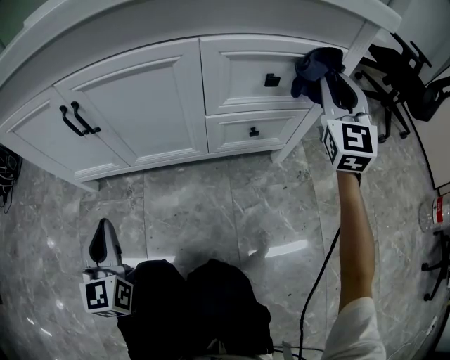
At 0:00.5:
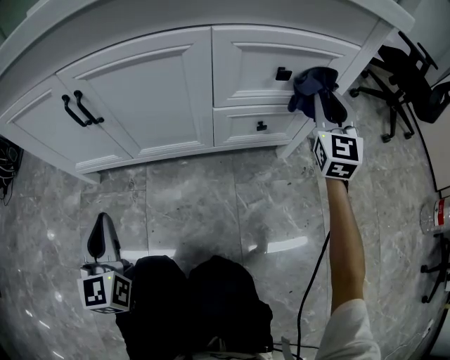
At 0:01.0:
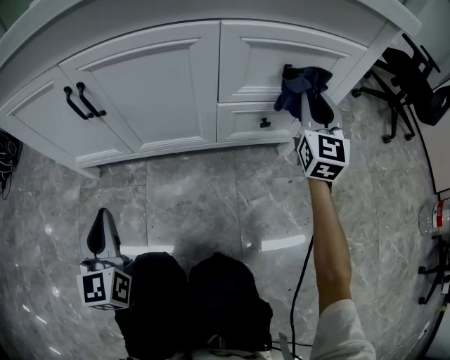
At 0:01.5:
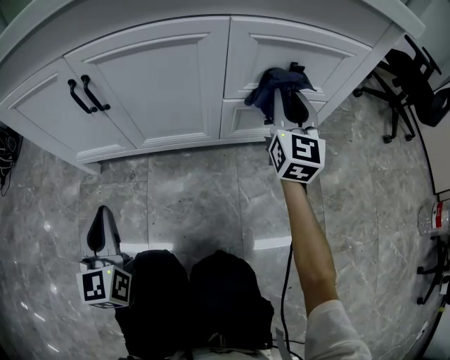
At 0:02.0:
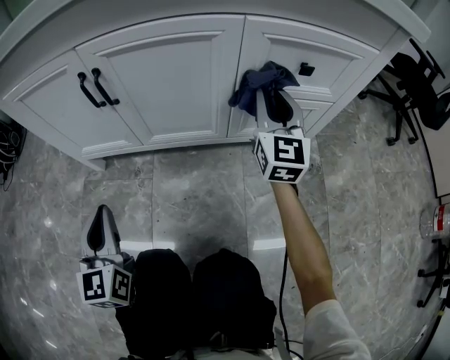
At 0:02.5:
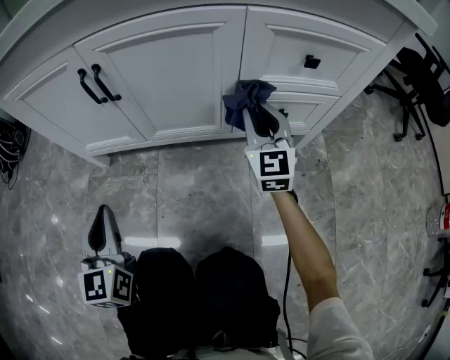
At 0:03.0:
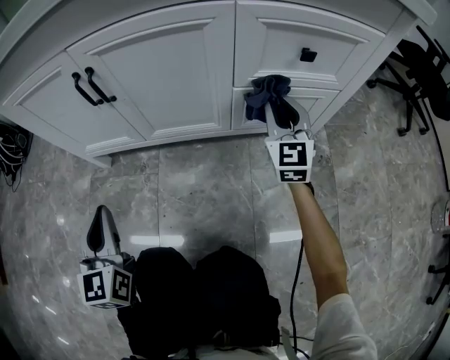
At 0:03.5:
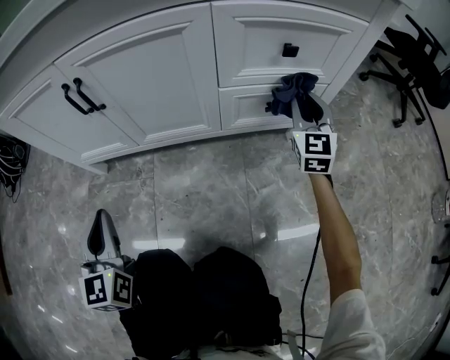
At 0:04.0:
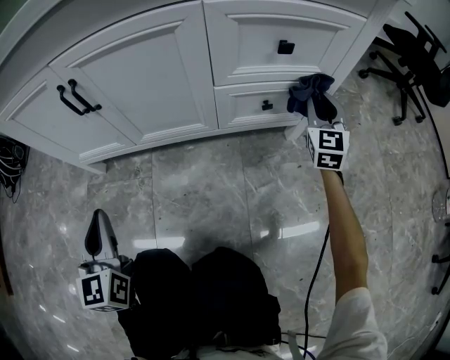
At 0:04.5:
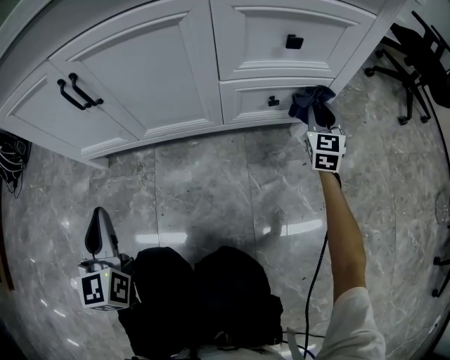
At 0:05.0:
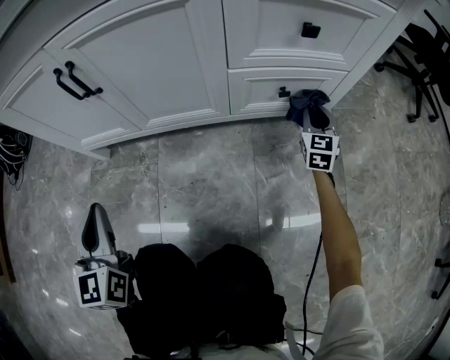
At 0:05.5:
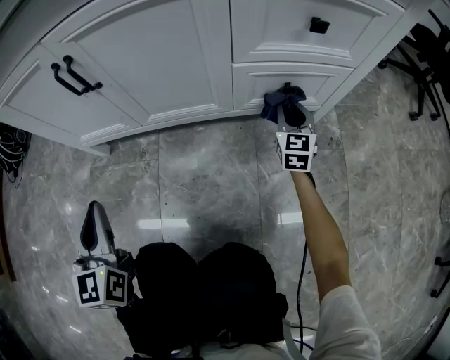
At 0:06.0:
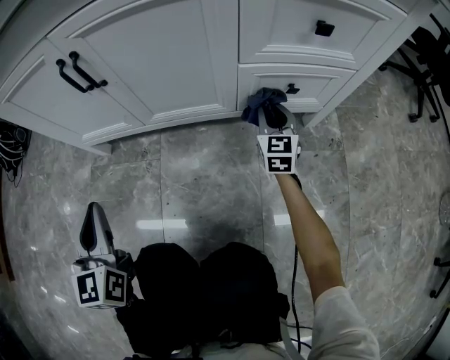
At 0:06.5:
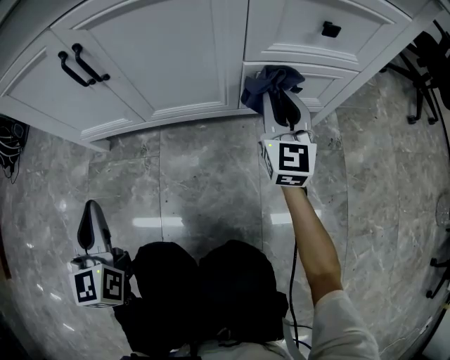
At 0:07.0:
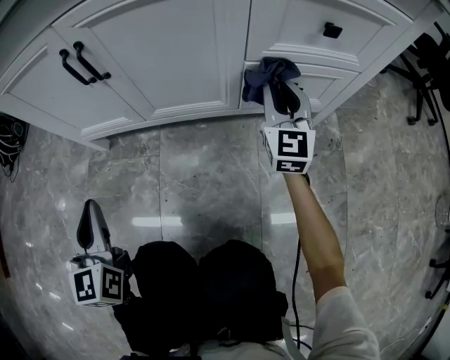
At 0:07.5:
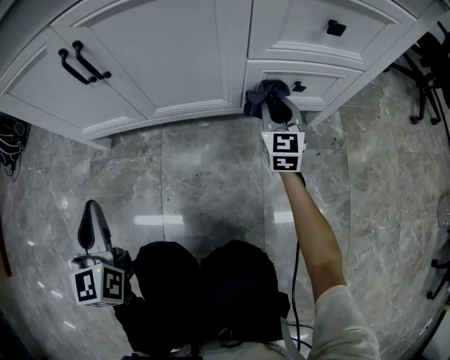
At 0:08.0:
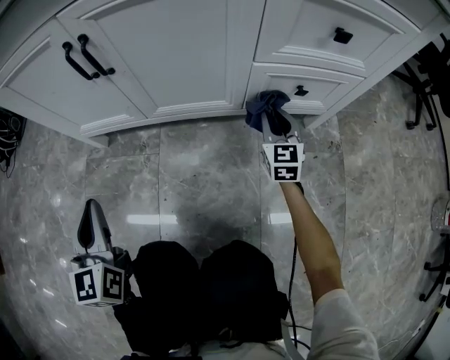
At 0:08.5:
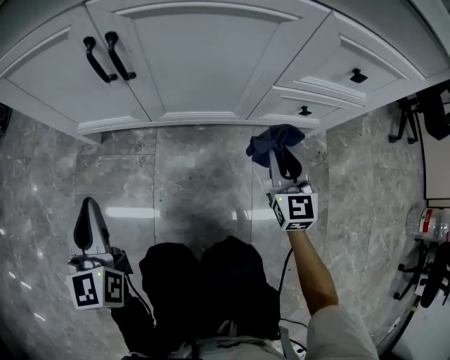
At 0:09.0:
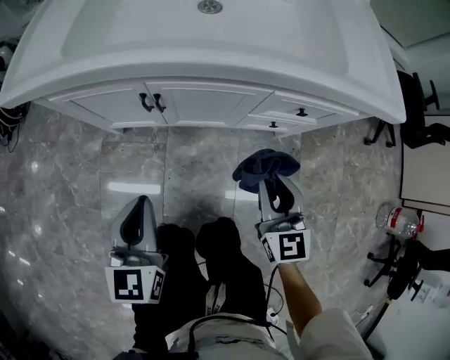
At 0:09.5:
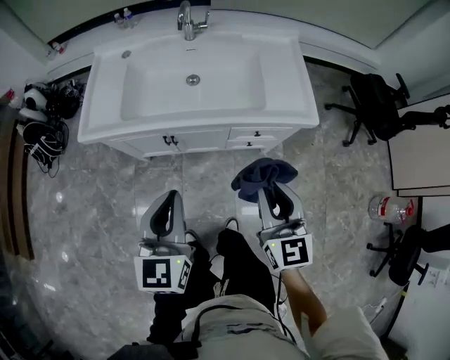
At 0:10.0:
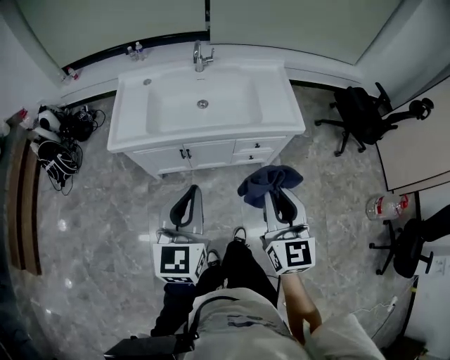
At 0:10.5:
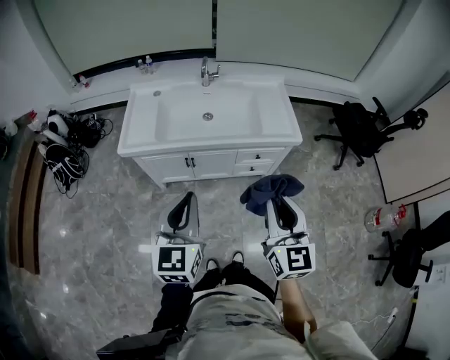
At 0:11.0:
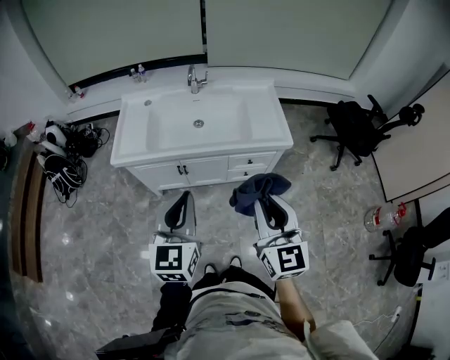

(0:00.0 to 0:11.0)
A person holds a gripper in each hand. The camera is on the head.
0:00.0 - 0:02.0: The right gripper heads to the left and downward, covering roughly 20 cm, and rotates about 20 degrees.
0:02.0 - 0:03.5: The right gripper goes about 15 cm to the right and downward.
0:03.5 - 0:05.5: The right gripper travels downward by some 15 cm.
0:05.5 - 0:07.5: The right gripper heads to the left, covering approximately 5 cm, and reaches approximately 15 cm upward, then returns.
0:07.5 - 0:09.0: The left gripper goes about 25 cm upward. Meanwhile the right gripper goes approximately 40 cm upward and backward.
0:09.0 - 0:11.0: Both grippers travel together upward, roughly 50 cm.

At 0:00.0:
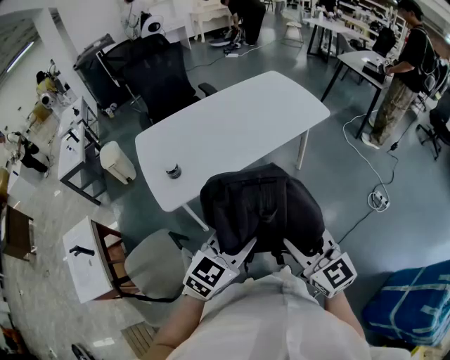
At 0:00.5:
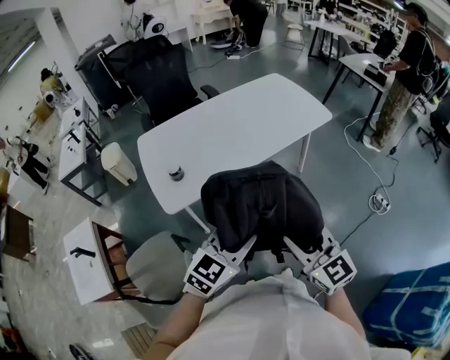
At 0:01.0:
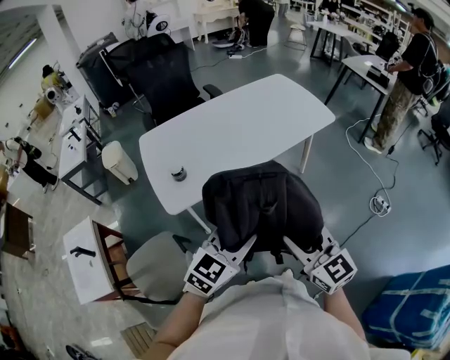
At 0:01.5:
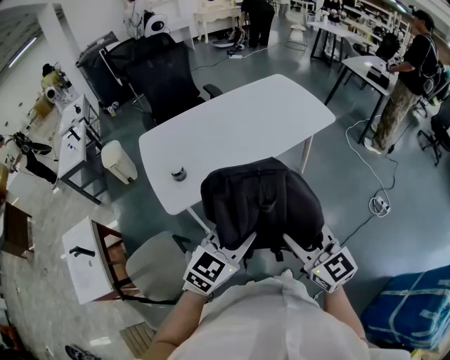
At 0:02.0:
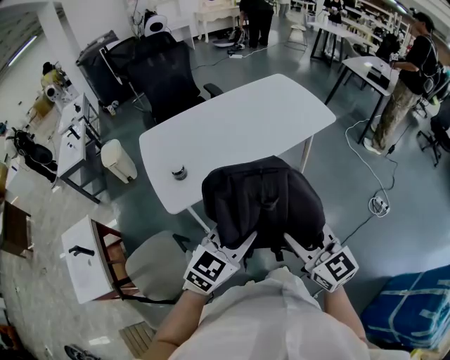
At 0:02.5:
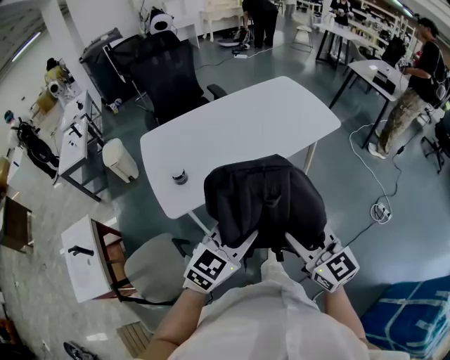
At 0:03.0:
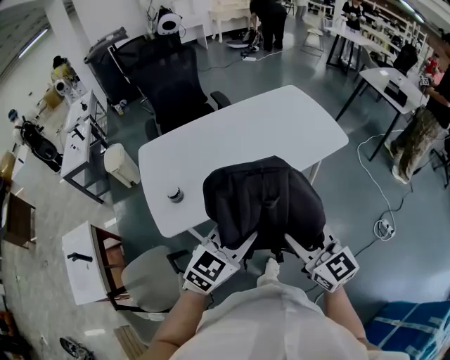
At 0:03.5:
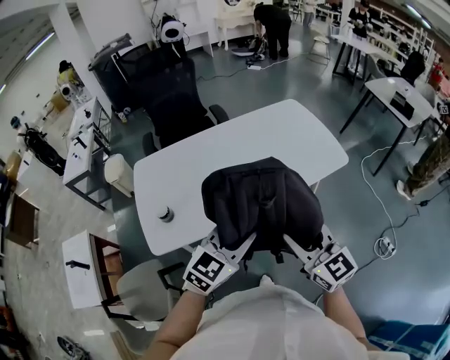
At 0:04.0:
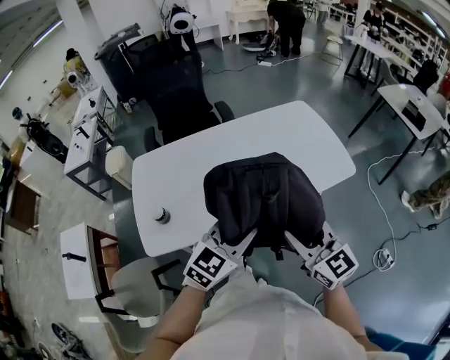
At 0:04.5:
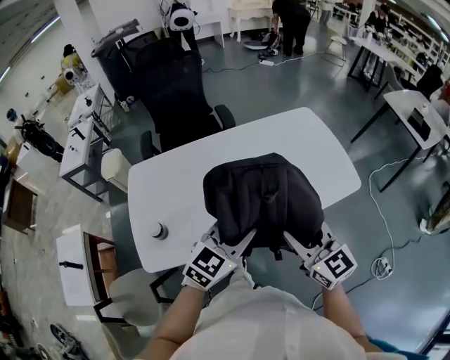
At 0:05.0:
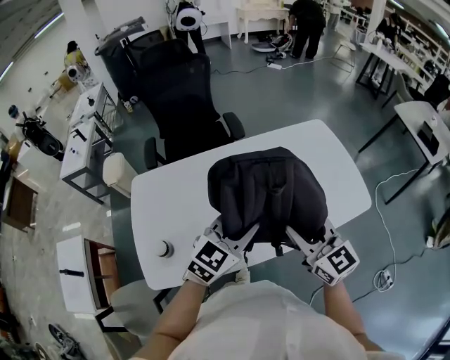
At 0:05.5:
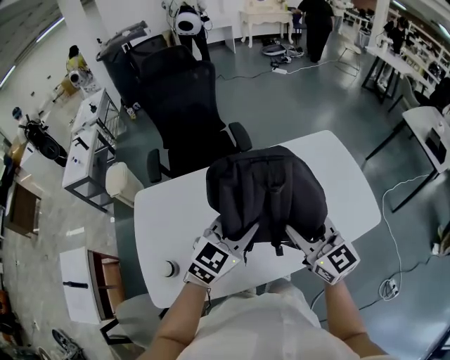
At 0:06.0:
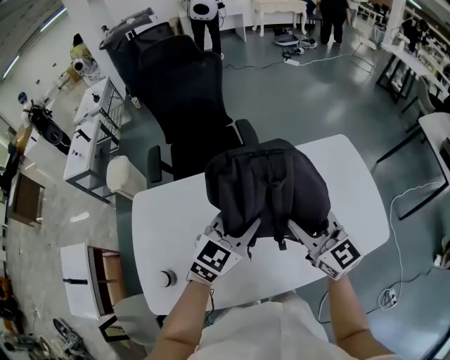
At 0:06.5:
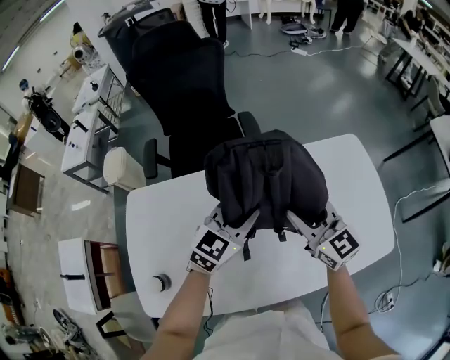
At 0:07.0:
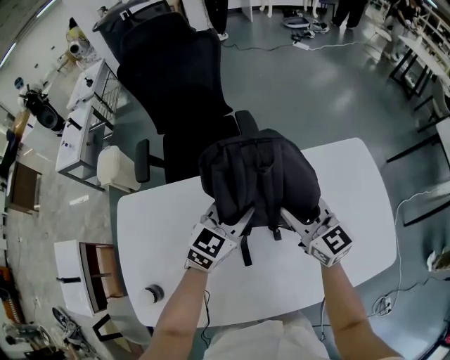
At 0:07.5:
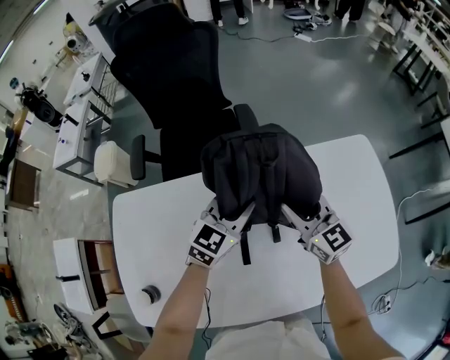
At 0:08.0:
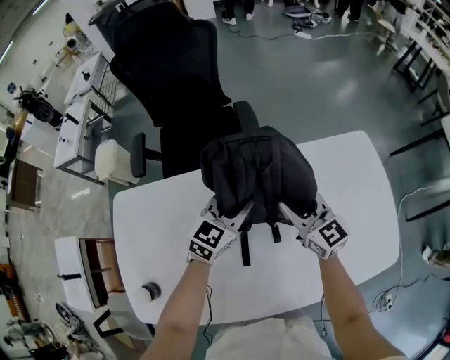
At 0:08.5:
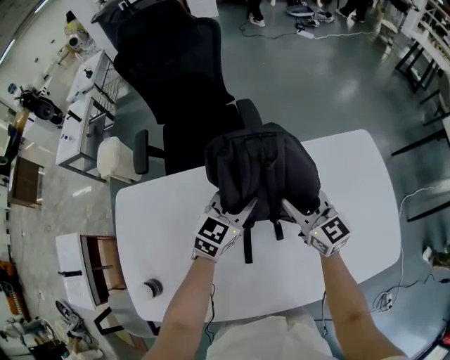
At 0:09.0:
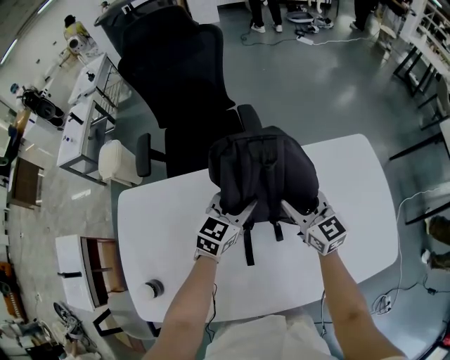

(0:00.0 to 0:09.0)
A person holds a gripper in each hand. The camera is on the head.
0:00.0 - 0:02.0: The grippers make only small movements.
0:02.0 - 0:04.5: Both grippers travel together forward, roughly 35 cm.
0:04.5 - 0:07.0: The two grippers go about 40 cm forward.
0:07.0 - 0:09.0: The grippers both shift downward by some 5 cm. The left gripper opens up.

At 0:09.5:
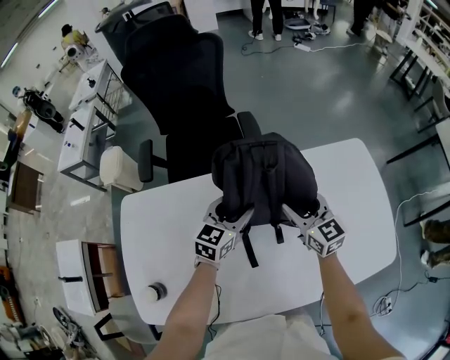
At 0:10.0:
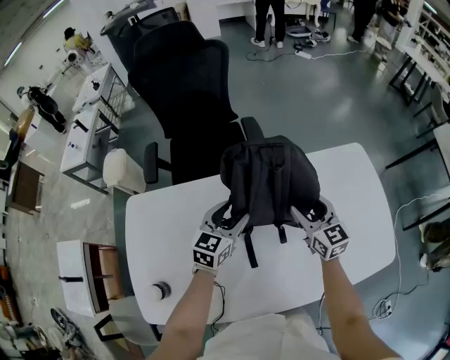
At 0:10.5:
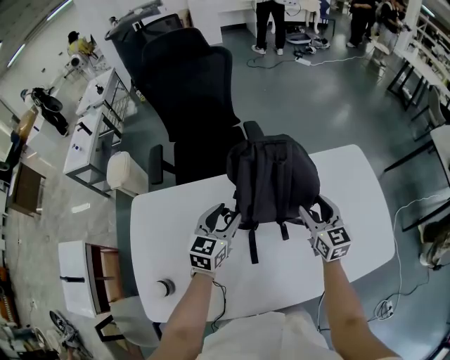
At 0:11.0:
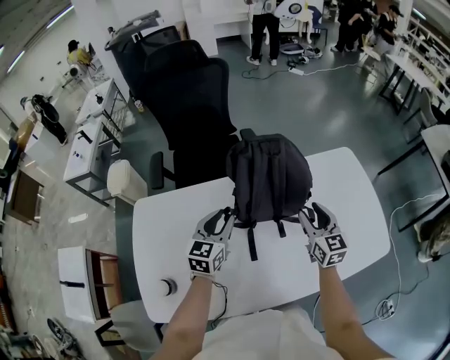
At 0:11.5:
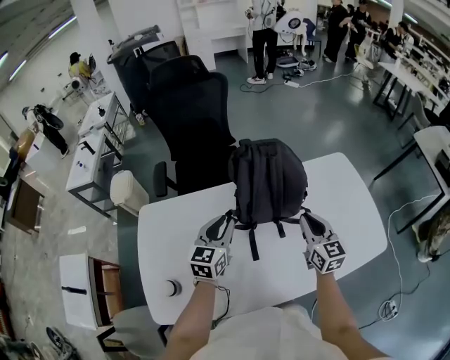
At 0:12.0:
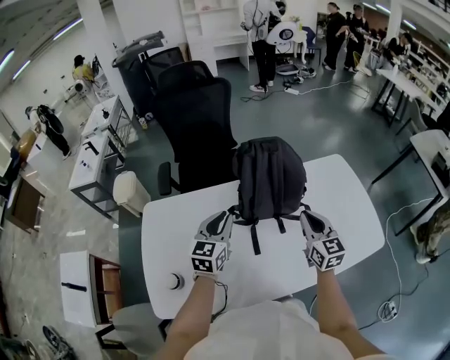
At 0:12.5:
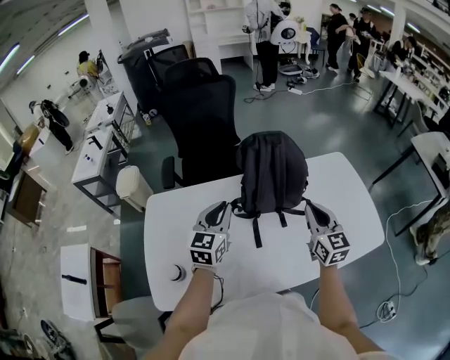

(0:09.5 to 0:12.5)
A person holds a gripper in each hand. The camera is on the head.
0:09.5 - 0:11.0: The right gripper travels backward by roughly 5 cm; the left gripper shifts approximately 10 cm to the left, backward and upward, and closes up.
0:11.0 - 0:12.5: Both grippers move upward and backward, approximately 10 cm. The right gripper closes up.

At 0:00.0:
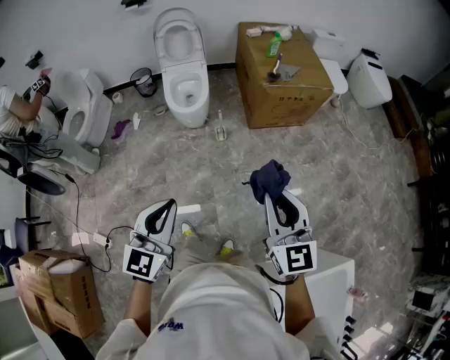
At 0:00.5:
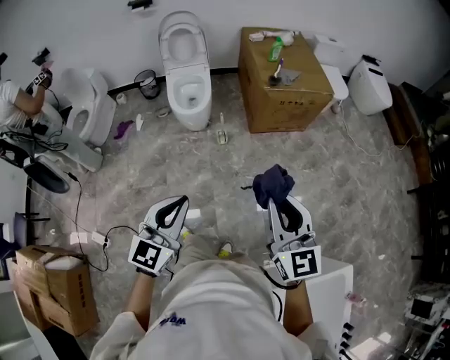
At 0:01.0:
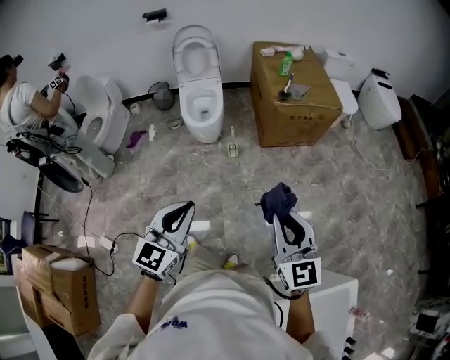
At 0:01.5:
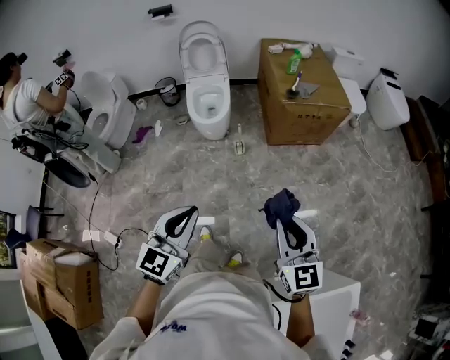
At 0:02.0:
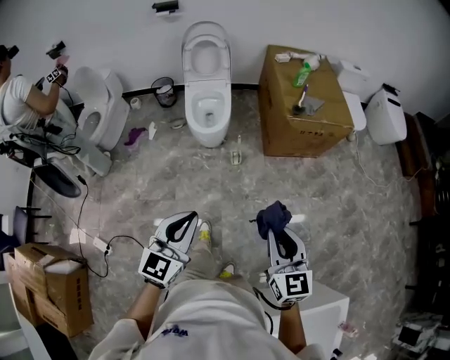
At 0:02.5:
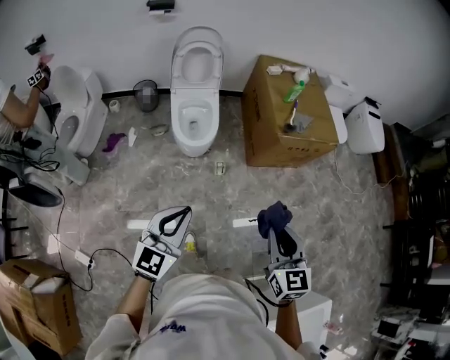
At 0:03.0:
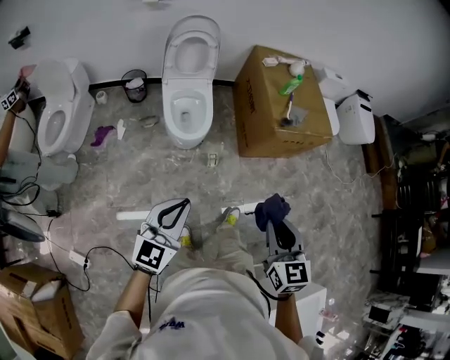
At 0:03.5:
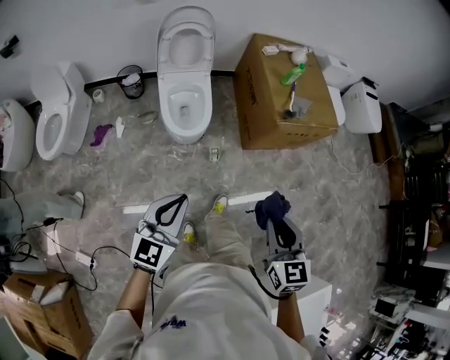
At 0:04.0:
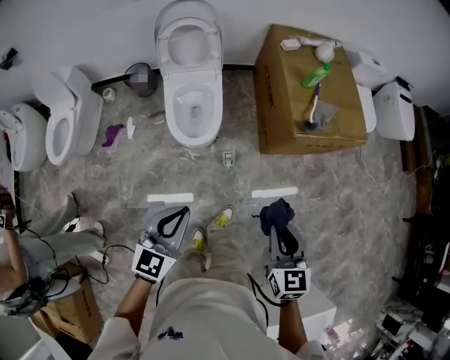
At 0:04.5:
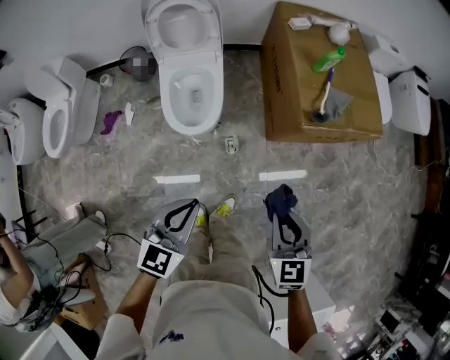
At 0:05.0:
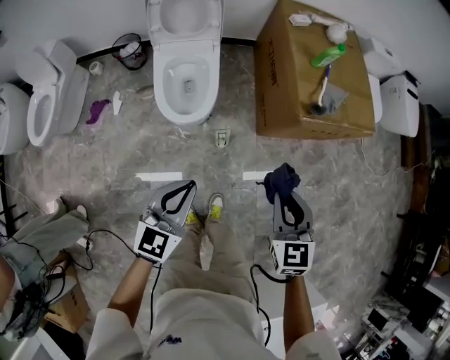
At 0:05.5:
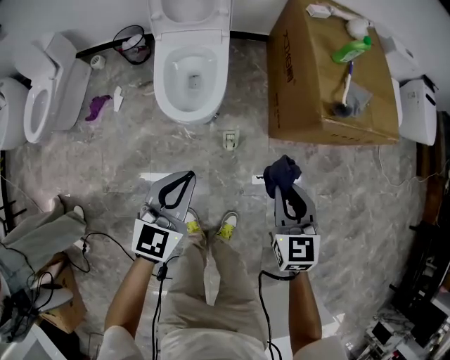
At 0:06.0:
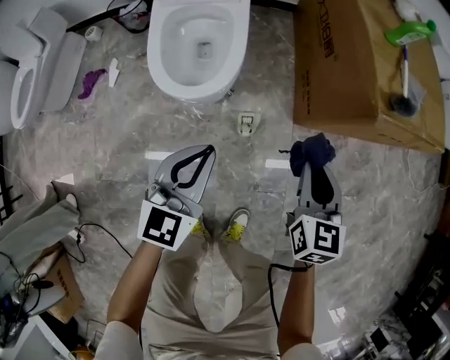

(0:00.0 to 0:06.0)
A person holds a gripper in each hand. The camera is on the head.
0:00.0 - 0:02.0: The left gripper moves forward, roughly 5 cm; the right gripper goes some 5 cm downward.
0:02.0 - 0:04.0: Both grippers move forward, about 30 cm.
0:04.0 - 0:06.0: Both grippers travel together downward and forward, some 40 cm.
